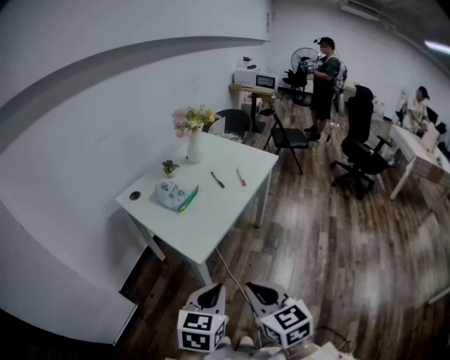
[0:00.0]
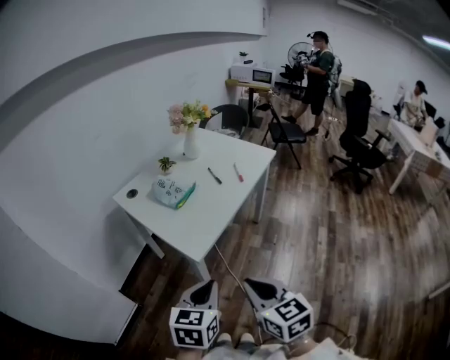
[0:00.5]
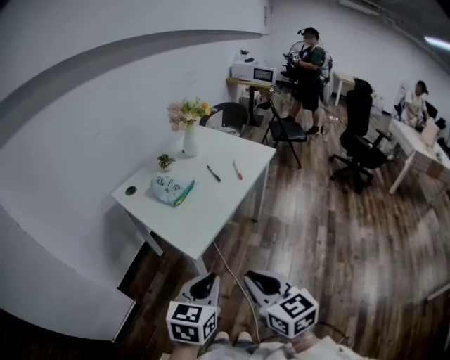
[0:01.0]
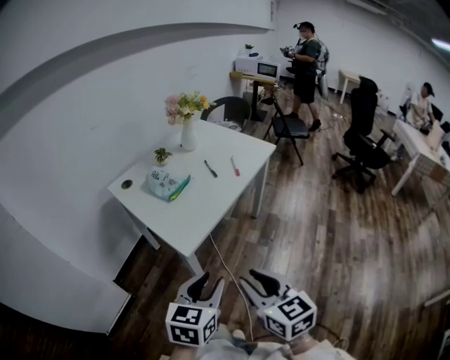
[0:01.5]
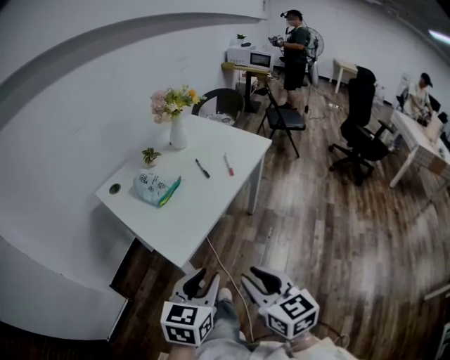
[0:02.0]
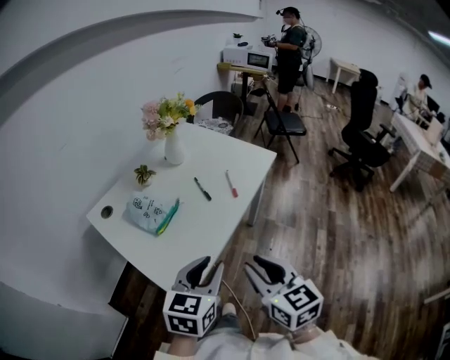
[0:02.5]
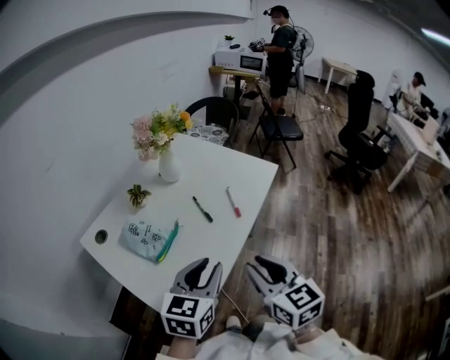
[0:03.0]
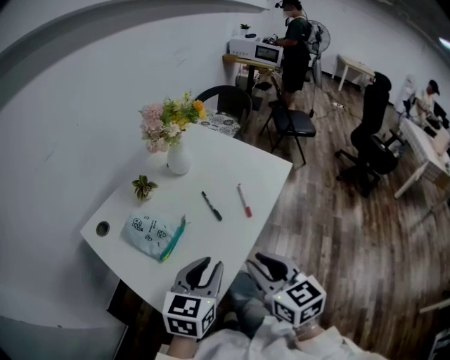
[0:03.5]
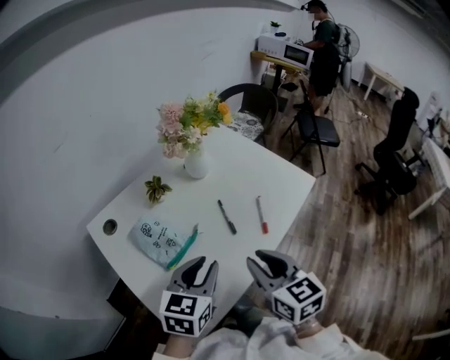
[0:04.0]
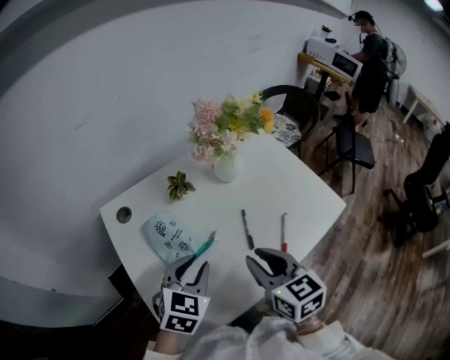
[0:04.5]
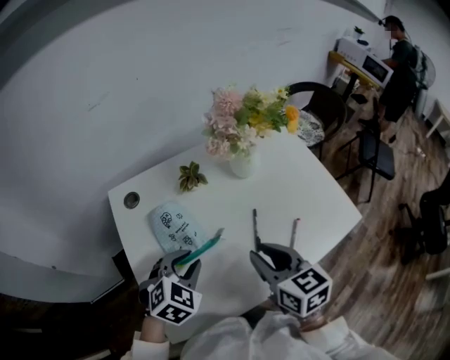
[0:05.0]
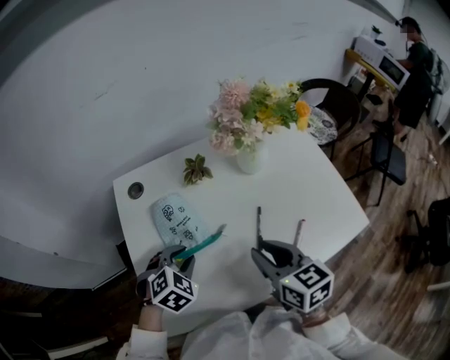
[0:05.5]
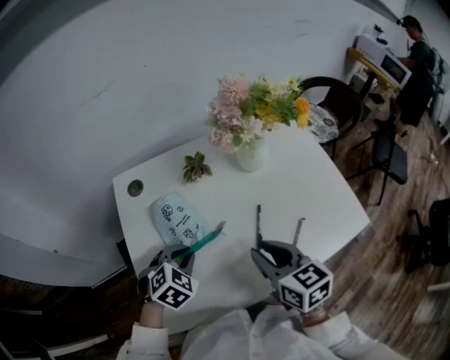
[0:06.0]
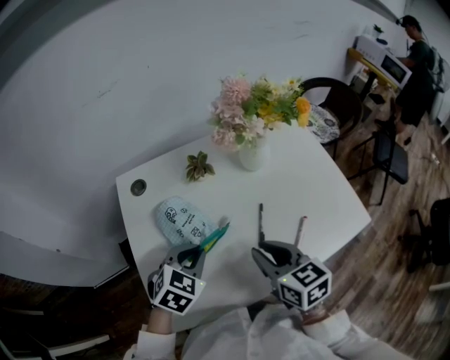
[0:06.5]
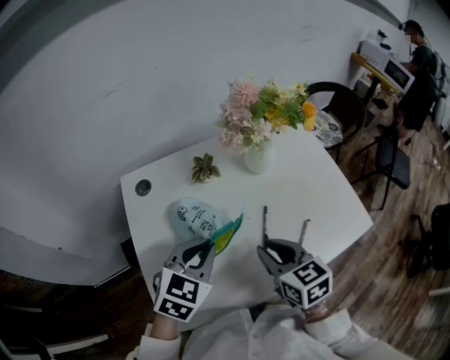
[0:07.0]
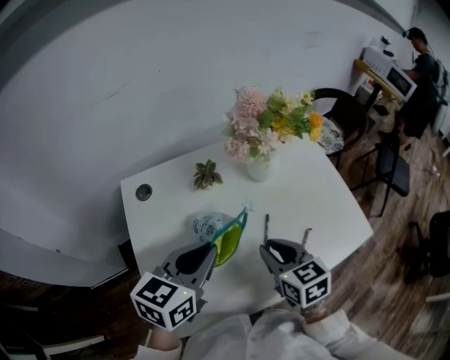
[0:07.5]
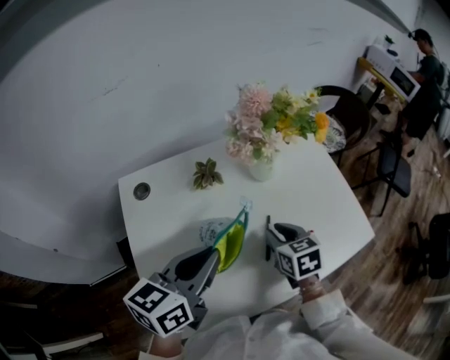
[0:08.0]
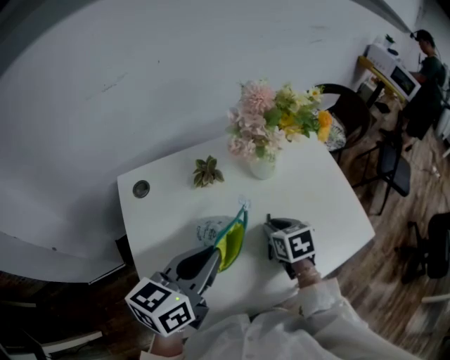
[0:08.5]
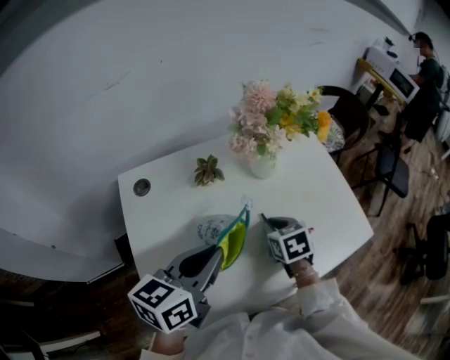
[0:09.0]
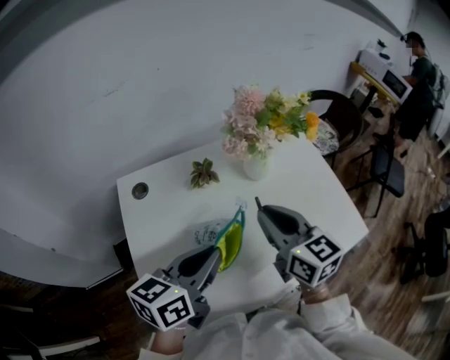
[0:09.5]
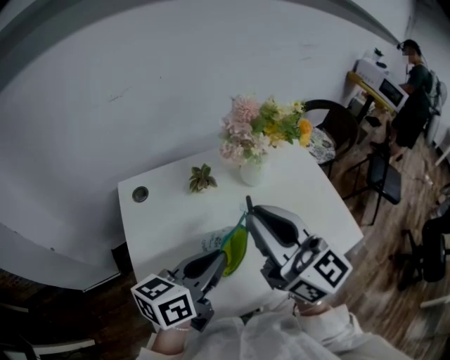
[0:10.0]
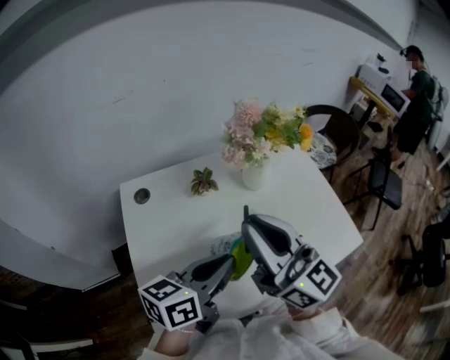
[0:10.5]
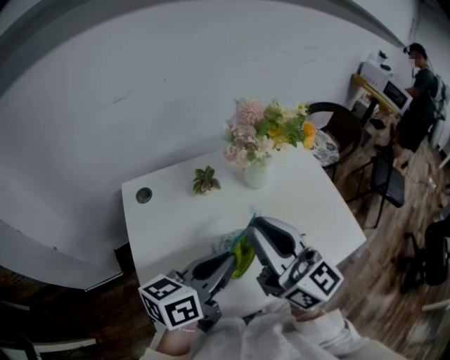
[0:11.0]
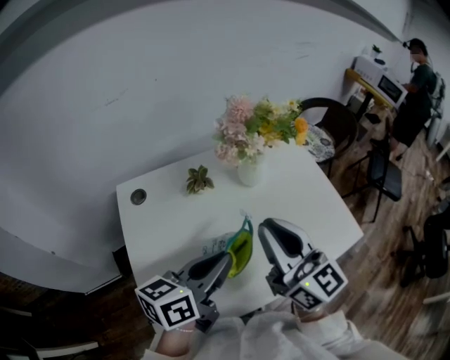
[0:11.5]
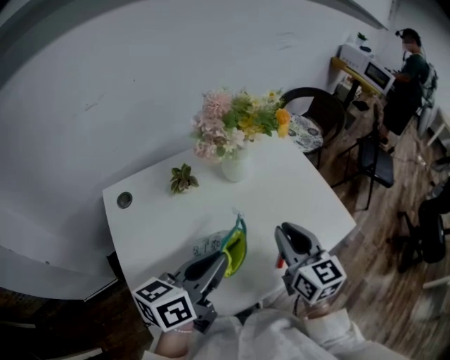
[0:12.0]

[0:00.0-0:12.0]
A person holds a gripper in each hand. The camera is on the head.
0:00.0 to 0:02.0: The left gripper moves forward, about 10 cm, and opens its fingers. Meanwhile the right gripper travels forward and to the right by approximately 10 cm, and opens its fingers.
0:02.0 to 0:04.0: The grippers both shift forward by about 35 cm.
0:04.0 to 0:06.0: The left gripper travels downward by about 10 cm, and tips its fingers downward by about 30 degrees. Meanwhile the right gripper shifts by about 10 cm, and rotates about 30 degrees.
0:06.0 to 0:08.0: The right gripper travels forward and downward by roughly 10 cm. The left gripper travels upward by some 15 cm, and tips its fingers upward by roughly 40 degrees.
0:08.0 to 0:10.0: The right gripper travels upward by about 25 cm, and points its fingers some 50 degrees further upward.
0:10.0 to 0:12.0: The right gripper shifts roughly 20 cm downward and to the right, and swivels approximately 30 degrees.

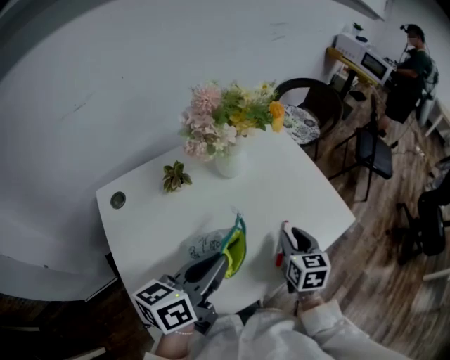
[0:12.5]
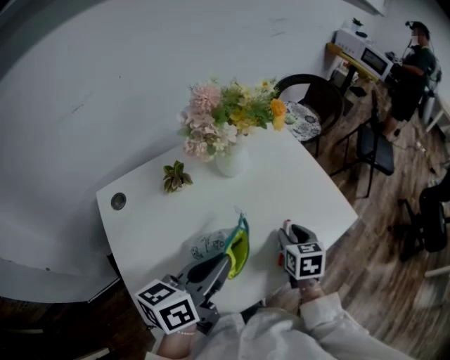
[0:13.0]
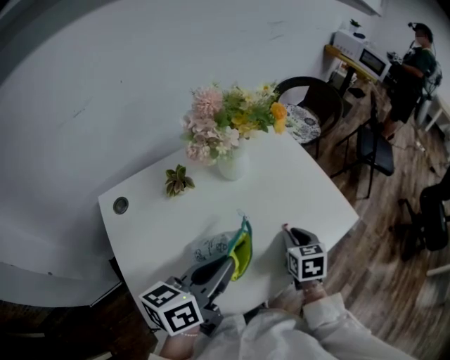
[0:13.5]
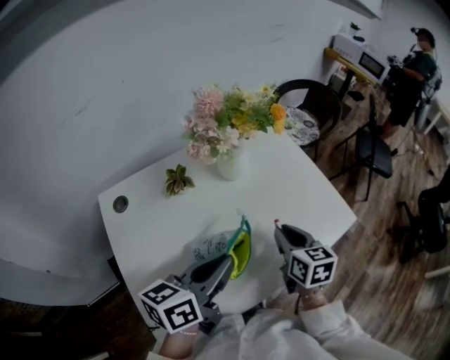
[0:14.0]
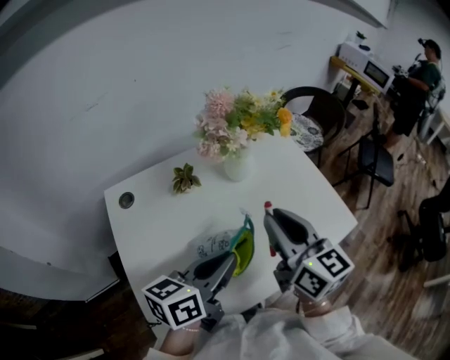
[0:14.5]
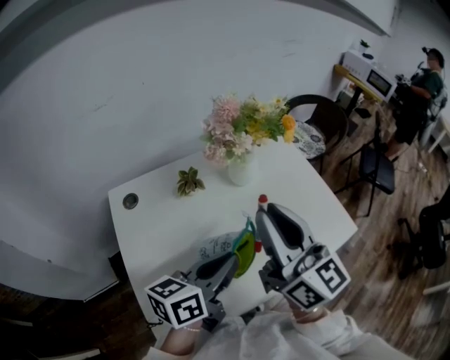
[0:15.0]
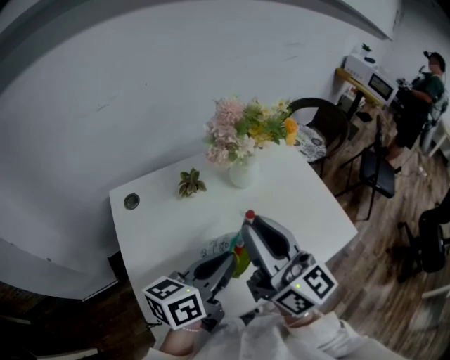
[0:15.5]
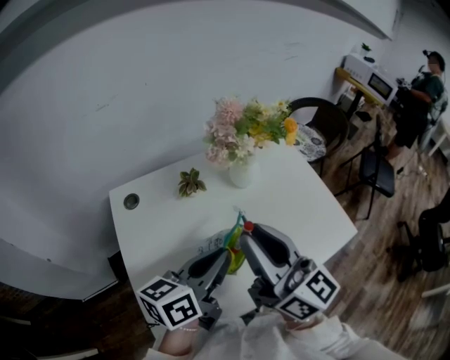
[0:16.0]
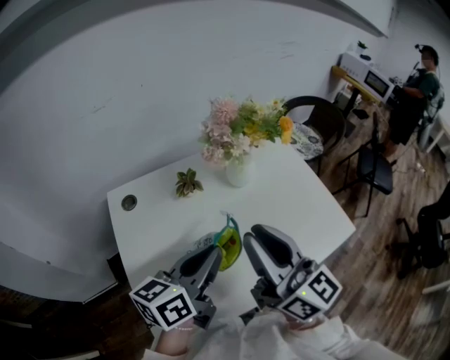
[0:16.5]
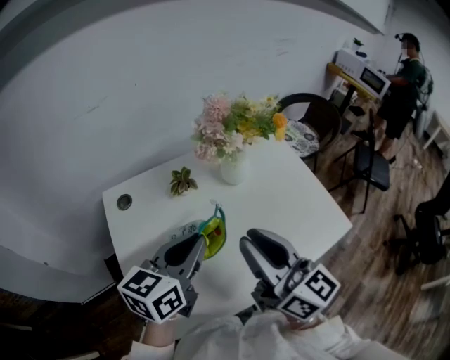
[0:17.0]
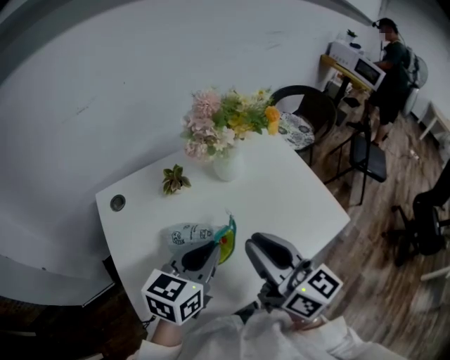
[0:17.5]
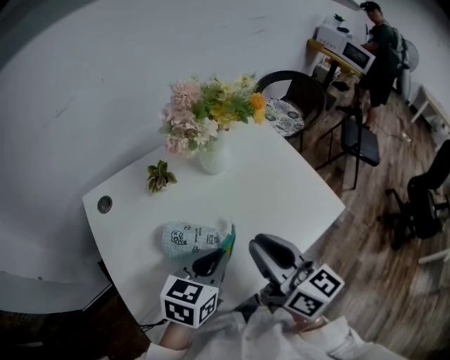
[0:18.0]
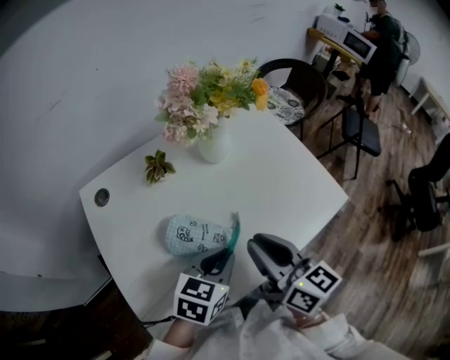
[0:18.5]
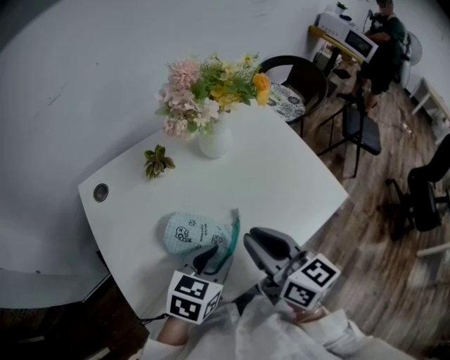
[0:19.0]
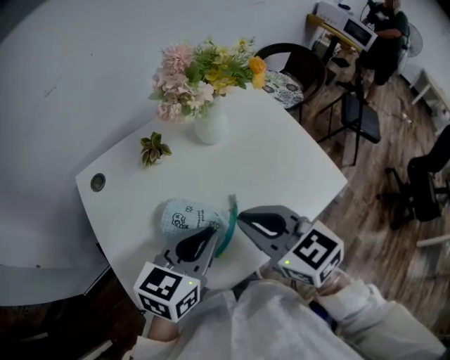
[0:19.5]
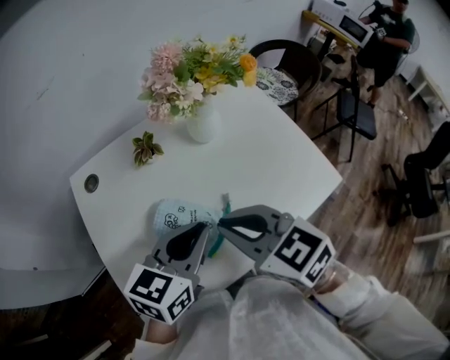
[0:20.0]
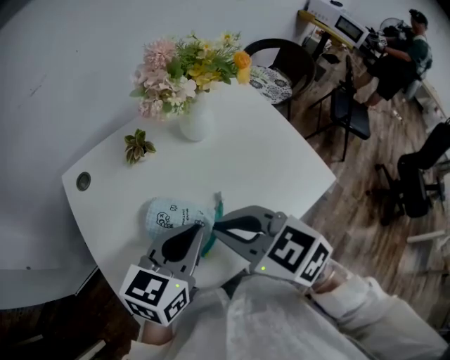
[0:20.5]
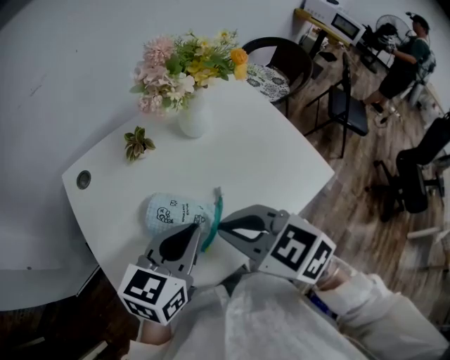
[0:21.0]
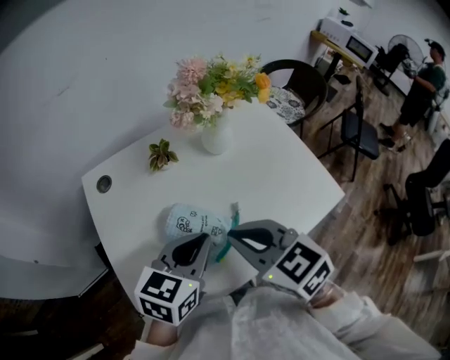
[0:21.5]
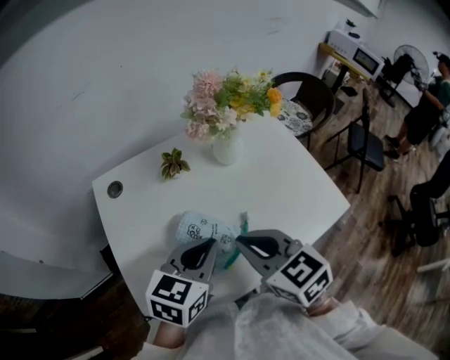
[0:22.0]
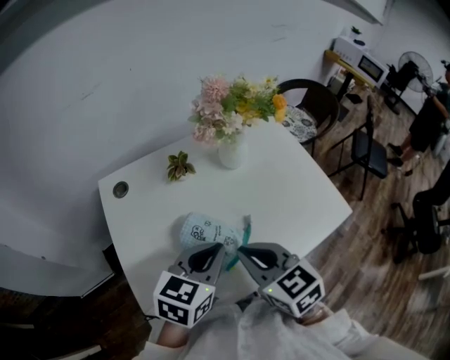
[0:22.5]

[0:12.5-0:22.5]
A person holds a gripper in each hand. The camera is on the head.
0:12.5 to 0:14.5: The right gripper heads upward and to the left, covering some 25 cm, and swivels about 40 degrees.
0:14.5 to 0:16.5: The right gripper moves backward and upward, approximately 5 cm.
0:16.5 to 0:18.5: The two grippers go roughly 15 cm downward and to the right. The right gripper changes its angle by roughly 20 degrees. The left gripper swivels some 40 degrees.
0:18.5 to 0:20.5: The left gripper travels upward by approximately 10 cm, and opens, then closes once more. Meanwhile the right gripper is displaced to the left by approximately 5 cm, and rotates roughly 50 degrees.
0:20.5 to 0:22.5: The grippers stay close to where they were, moving slightly.

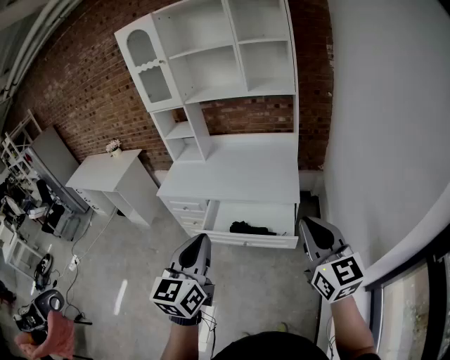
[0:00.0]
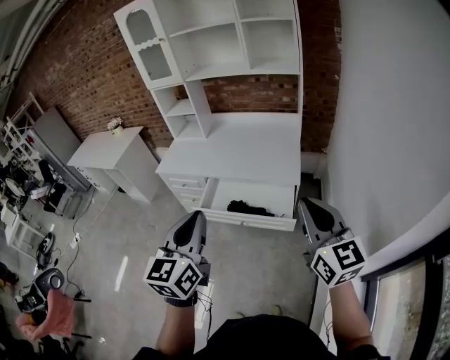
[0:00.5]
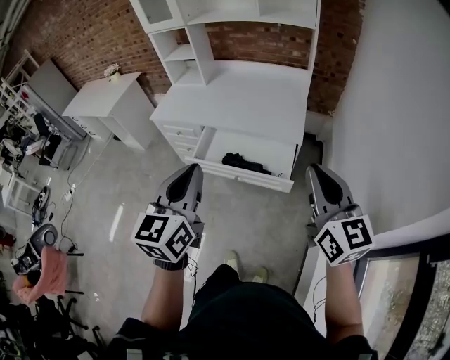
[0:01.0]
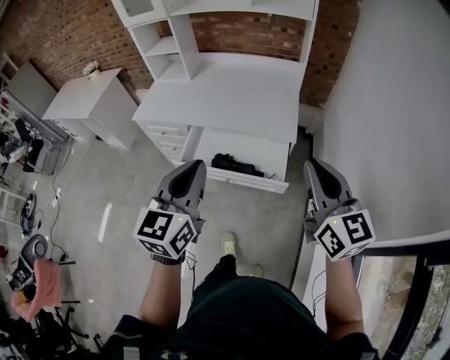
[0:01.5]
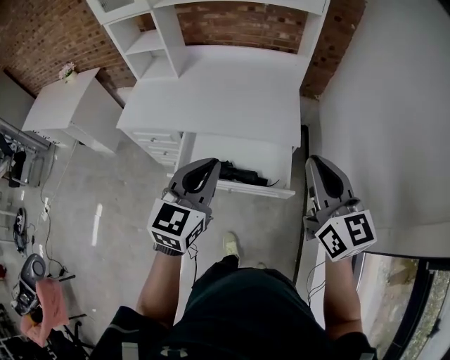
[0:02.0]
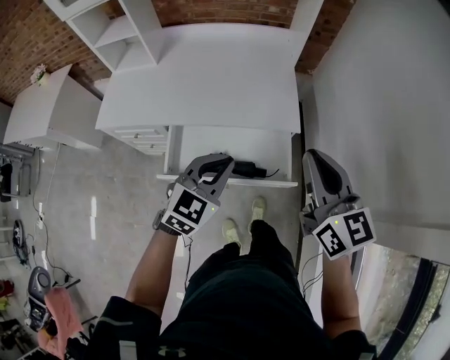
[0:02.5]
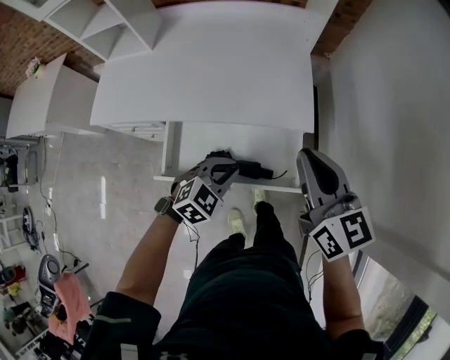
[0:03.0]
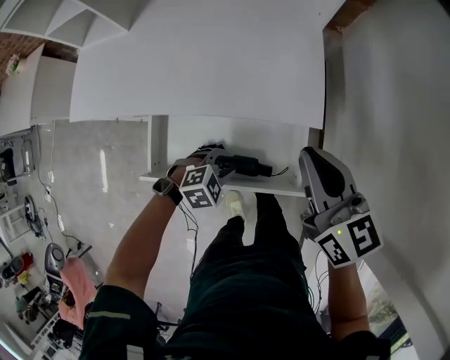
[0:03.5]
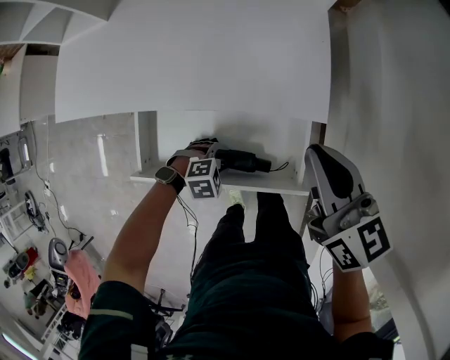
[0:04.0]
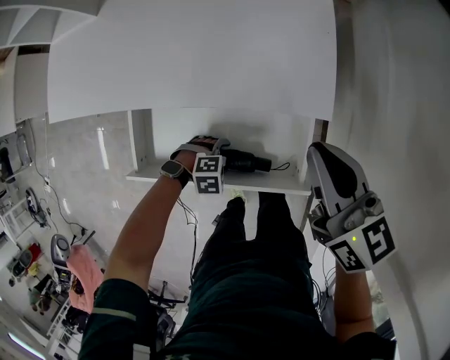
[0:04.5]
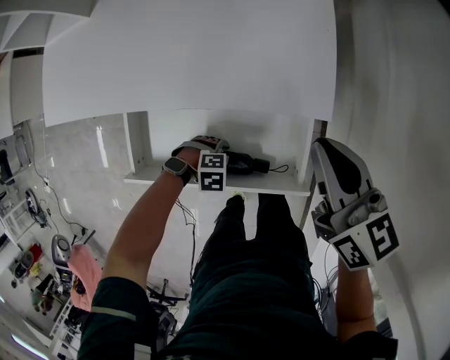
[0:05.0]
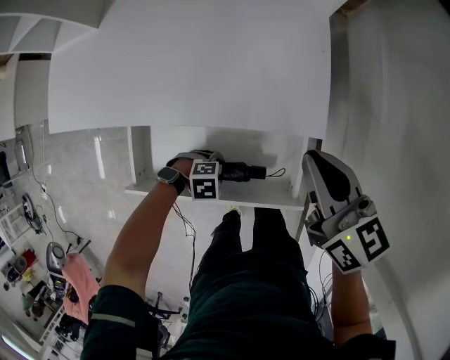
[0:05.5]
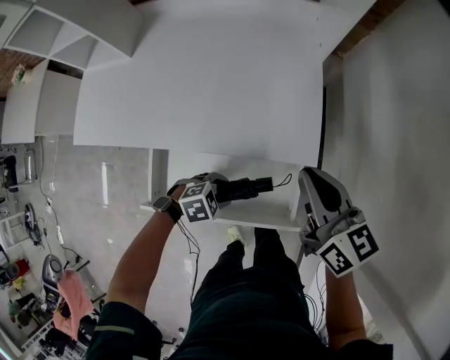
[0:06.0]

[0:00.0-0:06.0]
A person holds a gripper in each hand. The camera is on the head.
0:00.0 to 0:02.0: The left gripper shifts roughly 25 cm forward and downward, while the right gripper travels forward by some 20 cm.
0:02.0 to 0:04.0: The left gripper goes approximately 50 cm downward, angles its fingers downward, by some 60 degrees, and opens up. Meanwhile the right gripper travels downward by roughly 25 cm, and rotates roughly 30 degrees.
0:04.0 to 0:06.0: The left gripper moves upward, some 10 cm.
